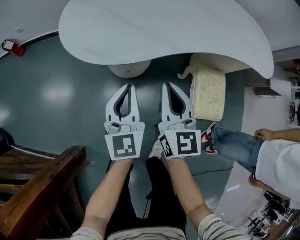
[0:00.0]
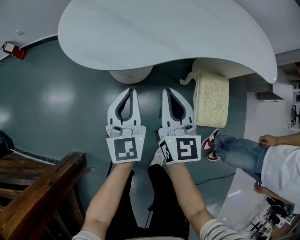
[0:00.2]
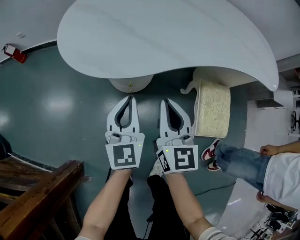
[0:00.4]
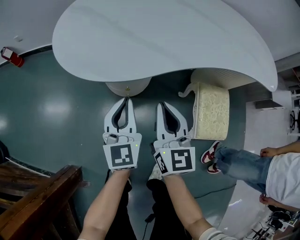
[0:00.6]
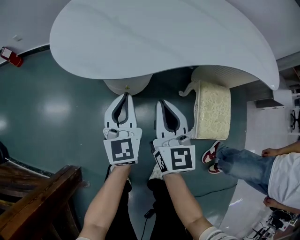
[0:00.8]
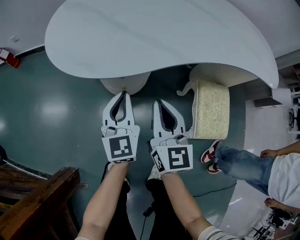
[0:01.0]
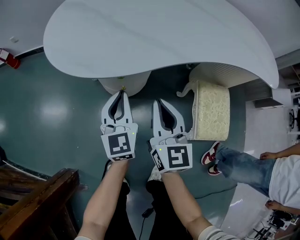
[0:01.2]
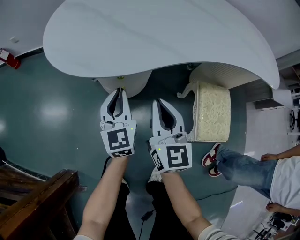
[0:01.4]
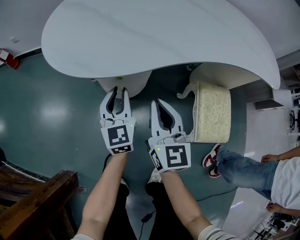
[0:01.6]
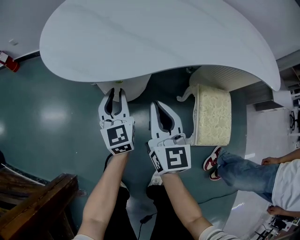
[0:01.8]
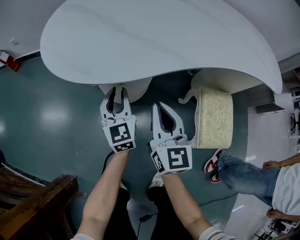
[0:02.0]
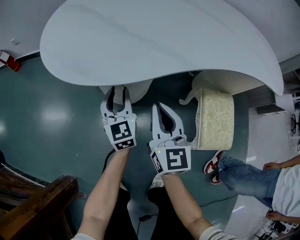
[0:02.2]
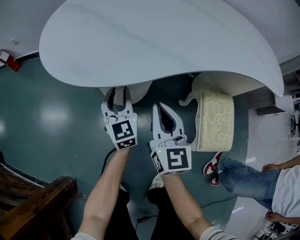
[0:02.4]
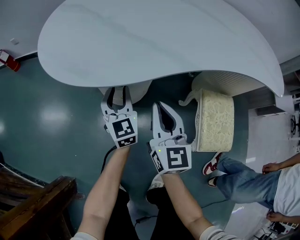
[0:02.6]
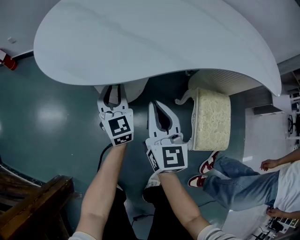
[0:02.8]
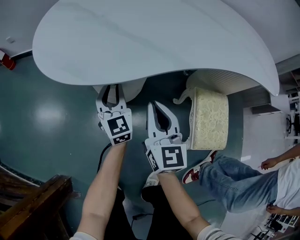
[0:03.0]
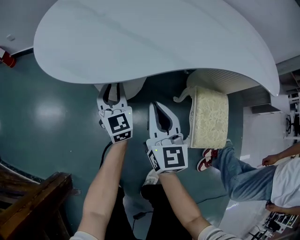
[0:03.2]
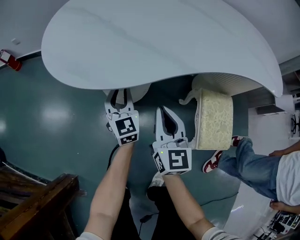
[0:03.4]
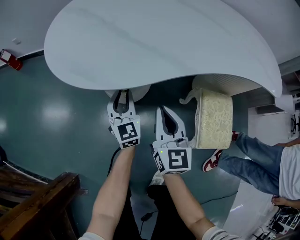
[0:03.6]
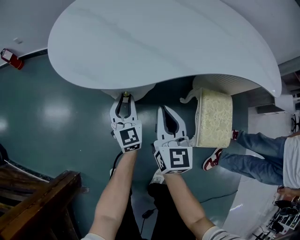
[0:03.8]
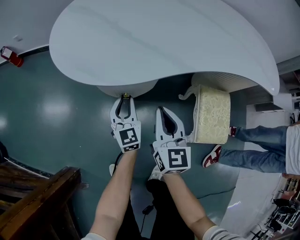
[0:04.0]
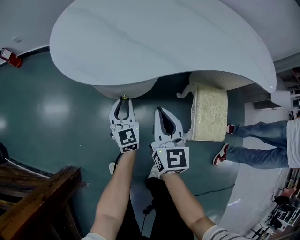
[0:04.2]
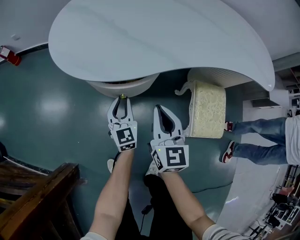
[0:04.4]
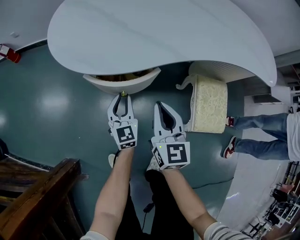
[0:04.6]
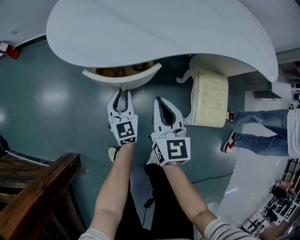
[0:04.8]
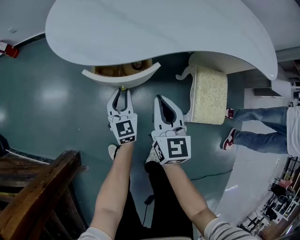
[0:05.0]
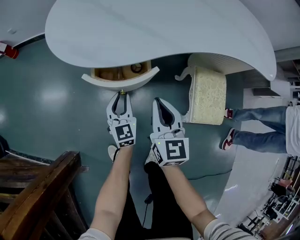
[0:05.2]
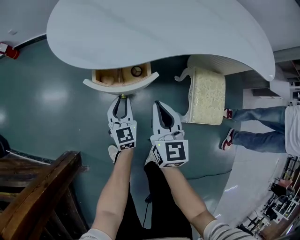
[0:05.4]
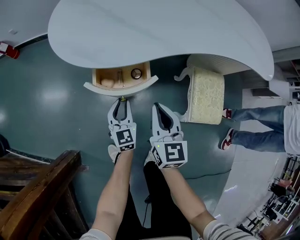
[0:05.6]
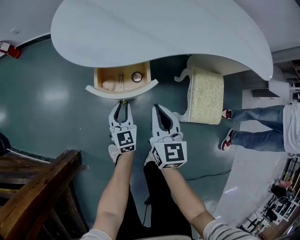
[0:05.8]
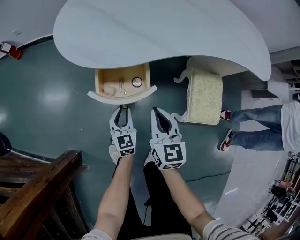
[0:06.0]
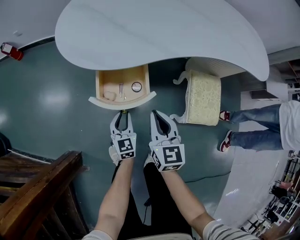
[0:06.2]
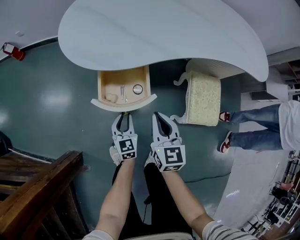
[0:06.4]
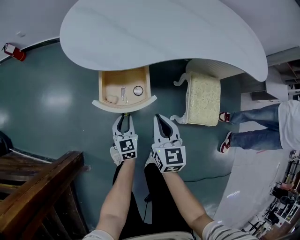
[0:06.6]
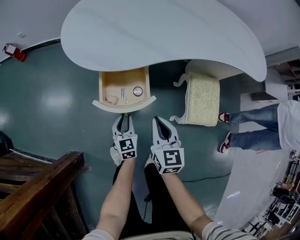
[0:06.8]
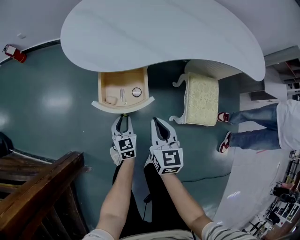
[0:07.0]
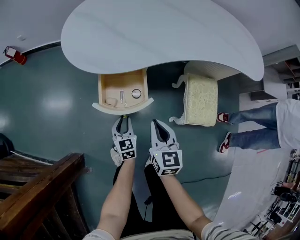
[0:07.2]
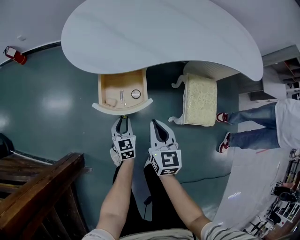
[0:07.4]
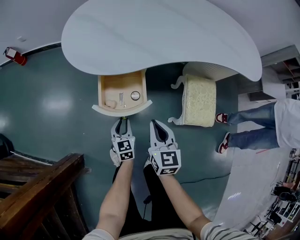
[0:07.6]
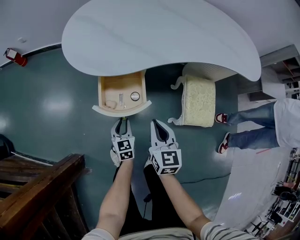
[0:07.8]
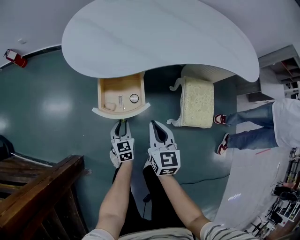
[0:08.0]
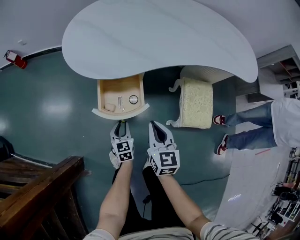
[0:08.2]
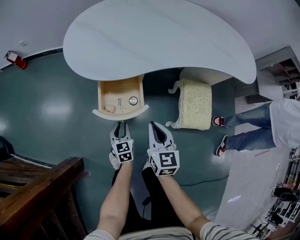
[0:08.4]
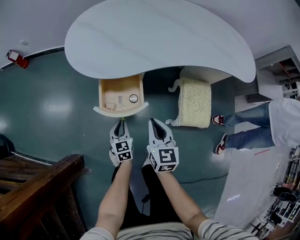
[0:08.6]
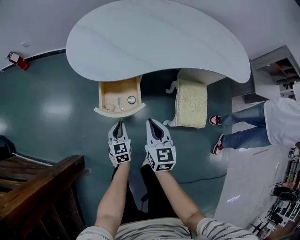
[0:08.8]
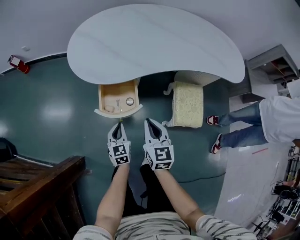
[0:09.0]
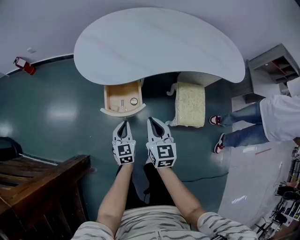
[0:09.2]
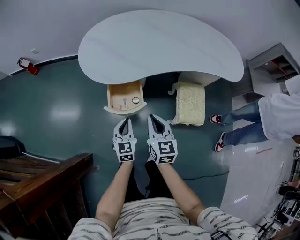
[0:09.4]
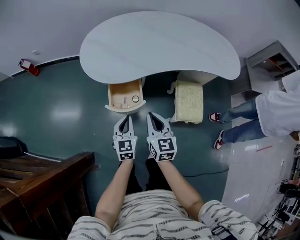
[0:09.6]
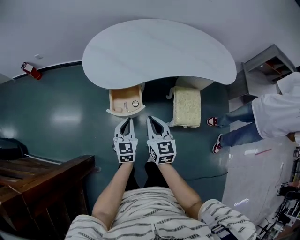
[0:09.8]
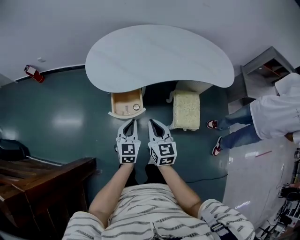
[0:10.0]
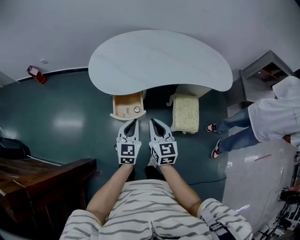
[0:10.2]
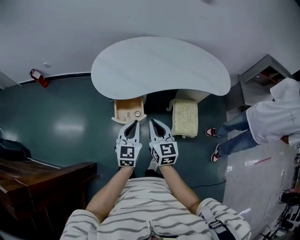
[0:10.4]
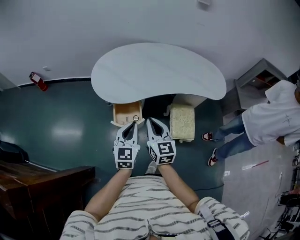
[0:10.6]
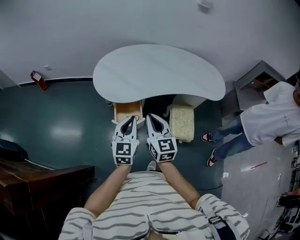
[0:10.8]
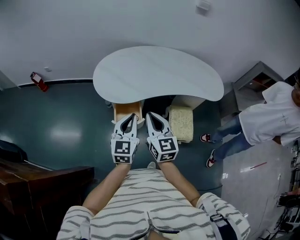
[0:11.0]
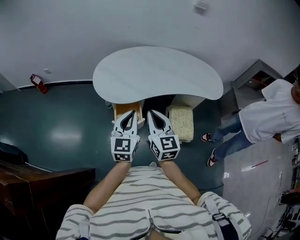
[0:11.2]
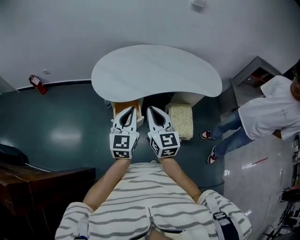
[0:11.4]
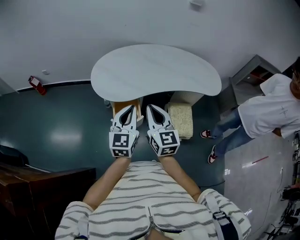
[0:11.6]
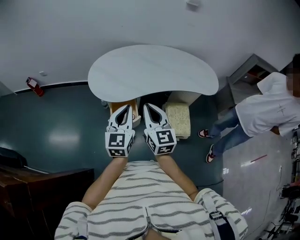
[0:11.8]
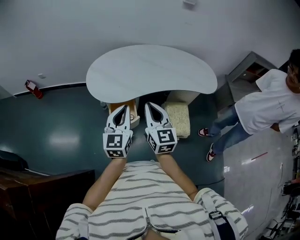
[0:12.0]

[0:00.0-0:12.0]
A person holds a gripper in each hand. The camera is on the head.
0:00.0 to 0:01.6: The right gripper goes some 10 cm downward. The left gripper moves downward and forward, approximately 20 cm.
0:01.6 to 0:03.0: The left gripper moves forward, roughly 5 cm.
0:03.0 to 0:04.4: The left gripper moves backward, about 10 cm; the right gripper ends up some 5 cm from where it was.
0:04.4 to 0:06.0: The left gripper travels backward by roughly 10 cm; the right gripper travels backward by some 5 cm.
0:06.0 to 0:07.6: There are only small adjustments of the grippers.
0:07.6 to 0:09.0: The grippers both shift upward by about 10 cm. The left gripper closes its fingers.
0:09.0 to 0:10.4: The right gripper moves upward, roughly 20 cm. The left gripper shifts some 30 cm upward, and changes its angle by roughly 20 degrees.
0:10.4 to 0:12.0: The grippers both shift upward by some 10 cm.

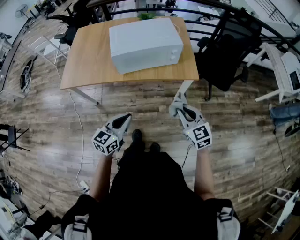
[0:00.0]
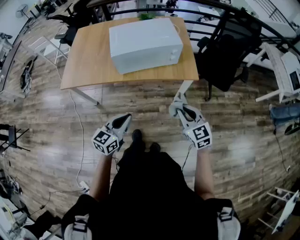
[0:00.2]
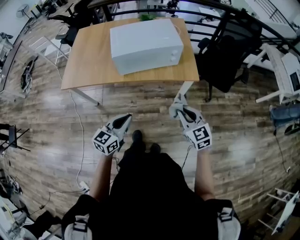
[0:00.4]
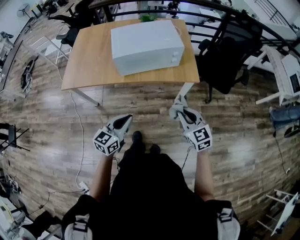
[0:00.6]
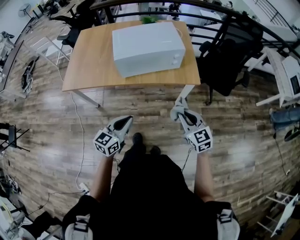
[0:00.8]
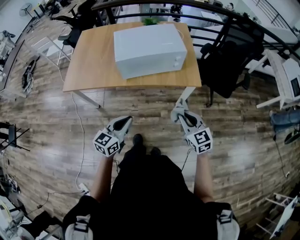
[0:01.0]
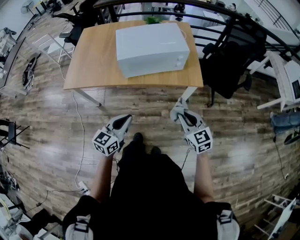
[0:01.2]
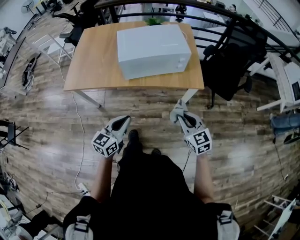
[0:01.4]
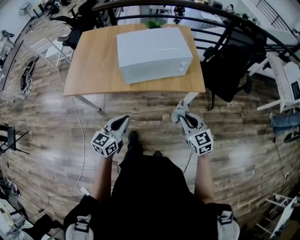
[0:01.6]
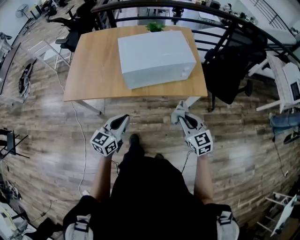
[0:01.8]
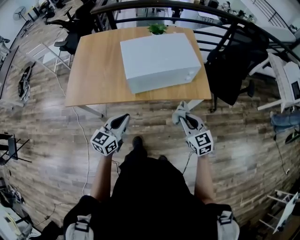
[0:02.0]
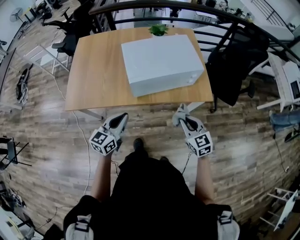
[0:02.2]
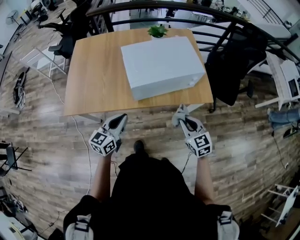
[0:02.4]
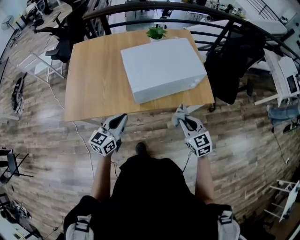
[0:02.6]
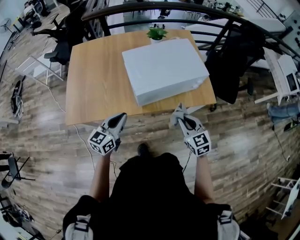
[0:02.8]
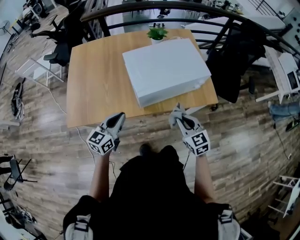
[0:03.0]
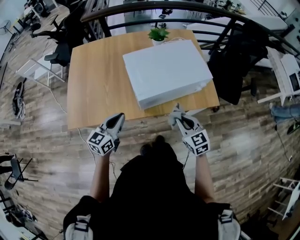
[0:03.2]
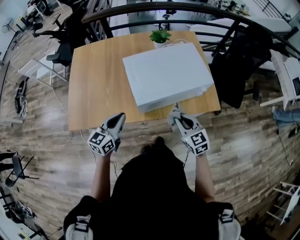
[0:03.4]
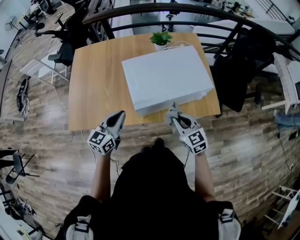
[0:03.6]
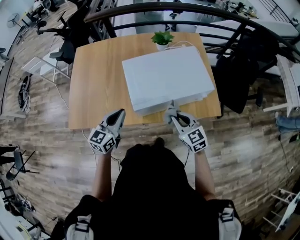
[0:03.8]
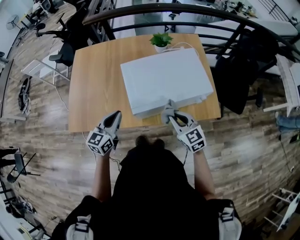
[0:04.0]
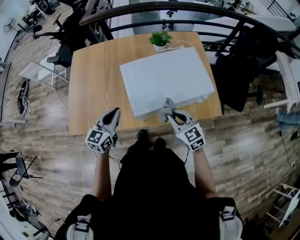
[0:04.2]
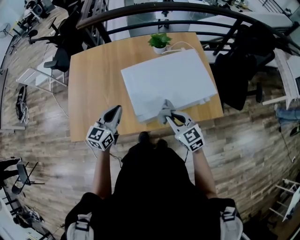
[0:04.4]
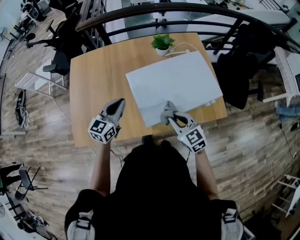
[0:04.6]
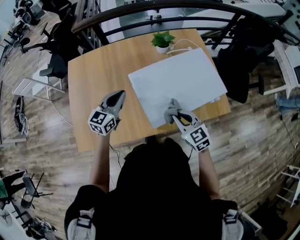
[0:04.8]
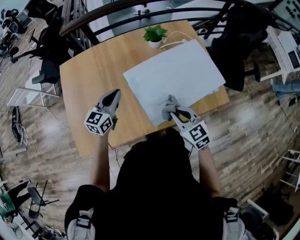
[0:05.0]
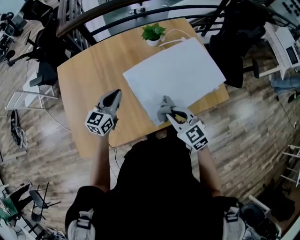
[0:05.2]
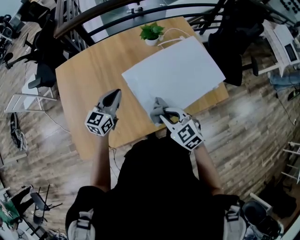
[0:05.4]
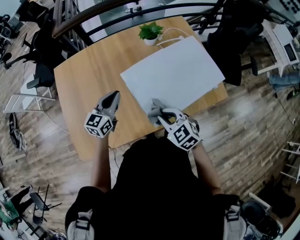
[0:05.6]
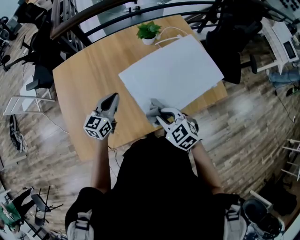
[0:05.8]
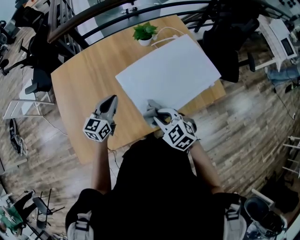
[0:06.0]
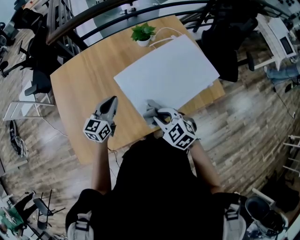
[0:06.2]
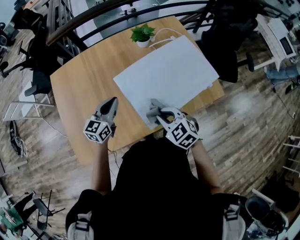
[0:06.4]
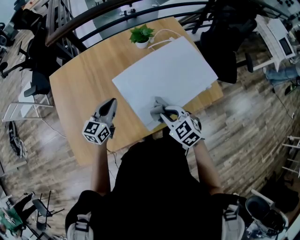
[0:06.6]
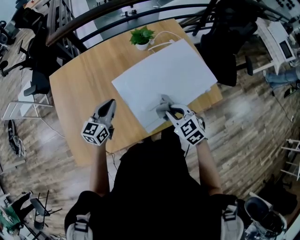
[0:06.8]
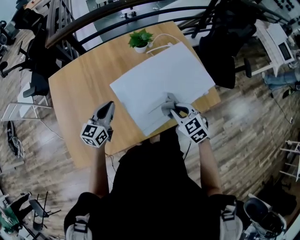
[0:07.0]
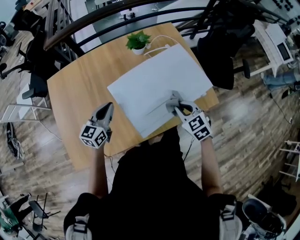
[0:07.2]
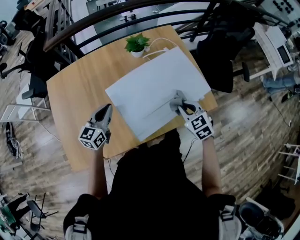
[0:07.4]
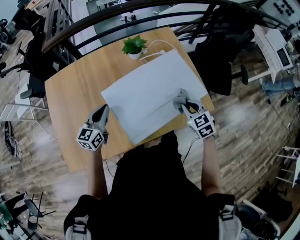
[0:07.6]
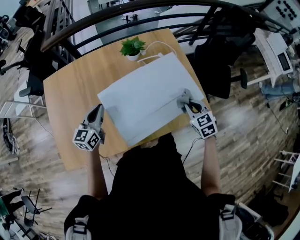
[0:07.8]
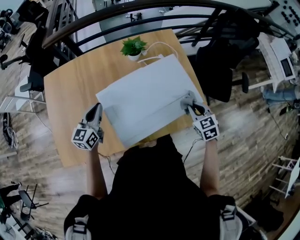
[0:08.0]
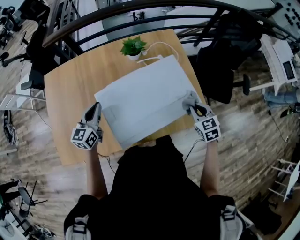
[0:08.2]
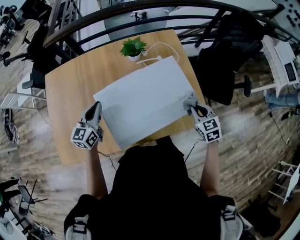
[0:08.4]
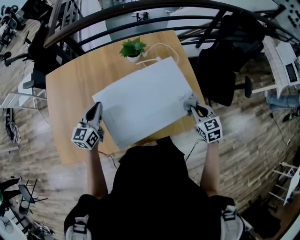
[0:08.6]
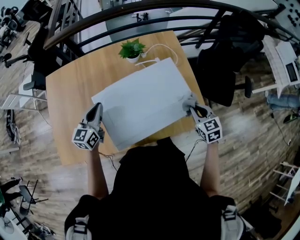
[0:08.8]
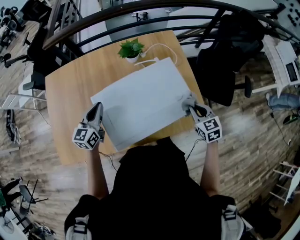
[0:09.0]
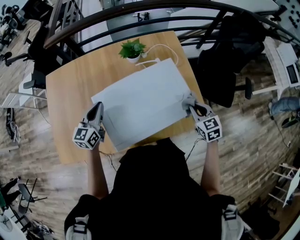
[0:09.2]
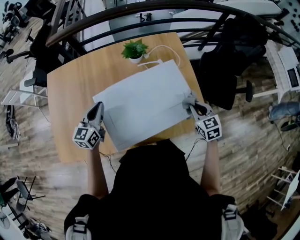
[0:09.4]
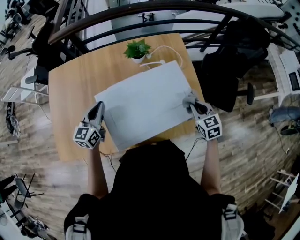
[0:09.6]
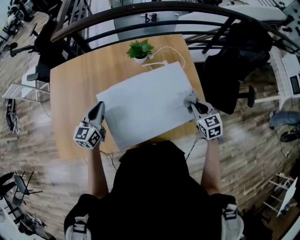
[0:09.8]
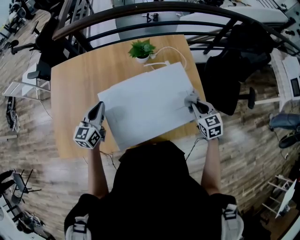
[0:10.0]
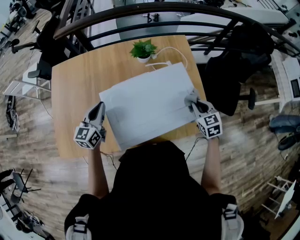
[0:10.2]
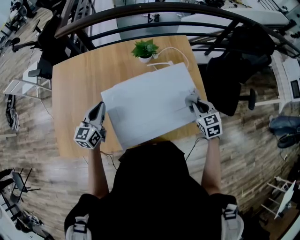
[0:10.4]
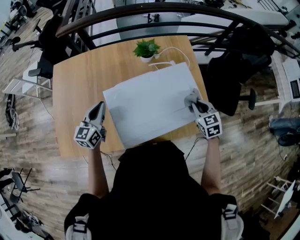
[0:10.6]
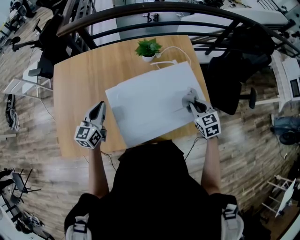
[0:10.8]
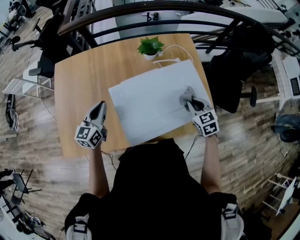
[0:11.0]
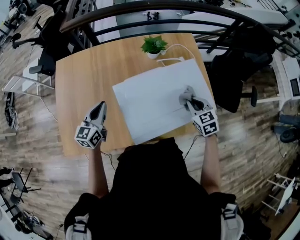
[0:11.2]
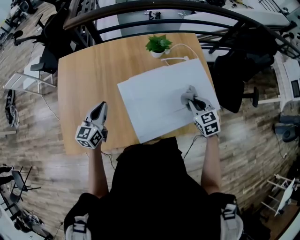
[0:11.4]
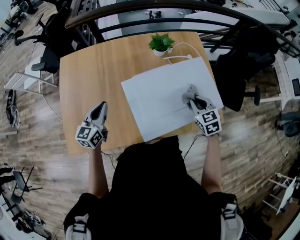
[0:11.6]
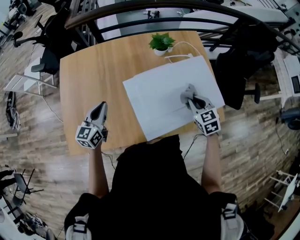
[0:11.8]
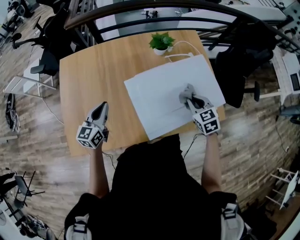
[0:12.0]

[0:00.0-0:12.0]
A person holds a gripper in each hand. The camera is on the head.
0:00.0 to 0:01.6: The right gripper shifts by some 5 cm. Meanwhile the left gripper travels to the left and forward by approximately 10 cm.
0:01.6 to 0:03.0: The left gripper moves forward and to the left, approximately 25 cm, while the right gripper shifts approximately 25 cm to the left and forward.
0:03.0 to 0:04.4: Both grippers move forward, some 15 cm.
0:04.4 to 0:06.0: The right gripper moves to the left, about 10 cm. The left gripper goes about 15 cm forward and downward.
0:06.0 to 0:07.6: The right gripper goes roughly 25 cm to the right and forward.
0:07.6 to 0:09.0: The right gripper goes approximately 10 cm to the right; the left gripper shifts by some 5 cm.
0:09.0 to 0:10.4: The right gripper moves roughly 5 cm.
0:10.4 to 0:12.0: Both grippers move to the left, approximately 15 cm.
